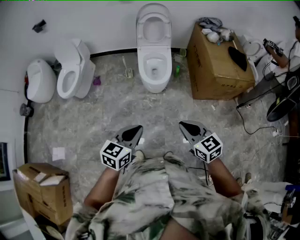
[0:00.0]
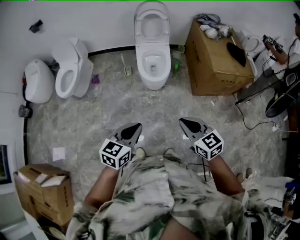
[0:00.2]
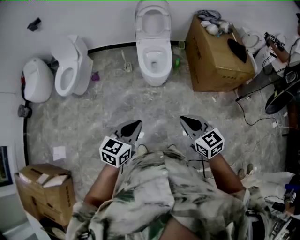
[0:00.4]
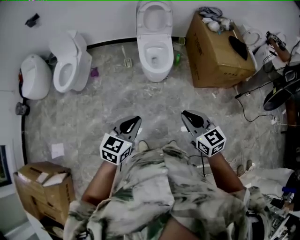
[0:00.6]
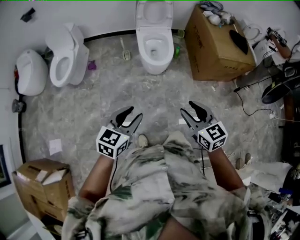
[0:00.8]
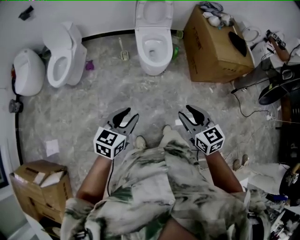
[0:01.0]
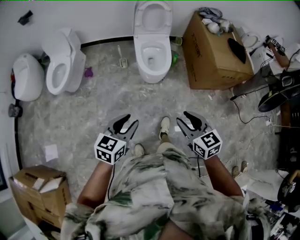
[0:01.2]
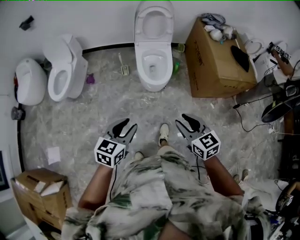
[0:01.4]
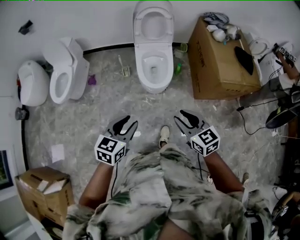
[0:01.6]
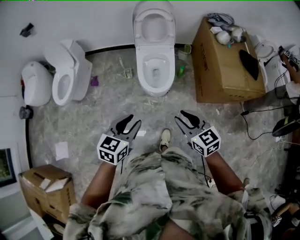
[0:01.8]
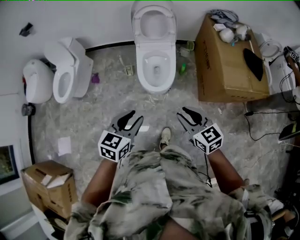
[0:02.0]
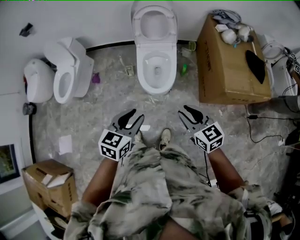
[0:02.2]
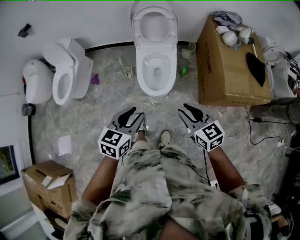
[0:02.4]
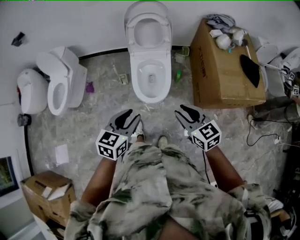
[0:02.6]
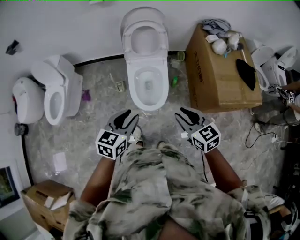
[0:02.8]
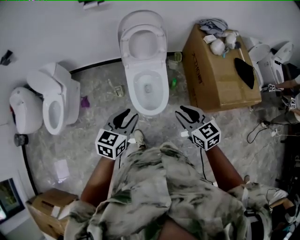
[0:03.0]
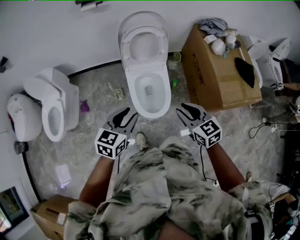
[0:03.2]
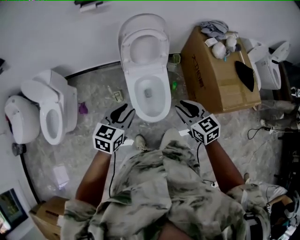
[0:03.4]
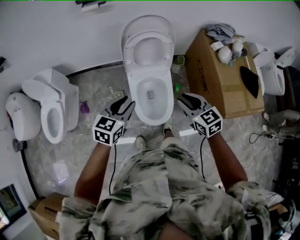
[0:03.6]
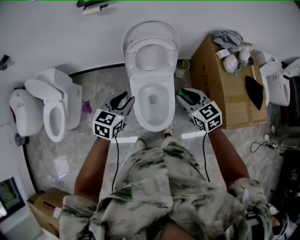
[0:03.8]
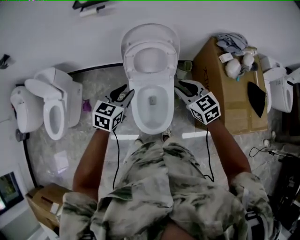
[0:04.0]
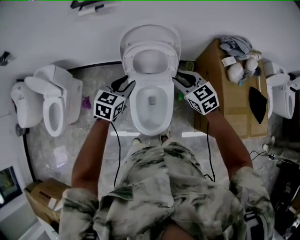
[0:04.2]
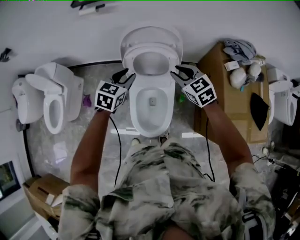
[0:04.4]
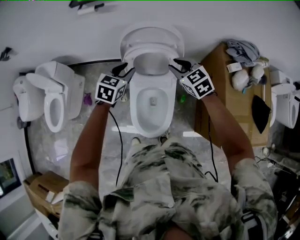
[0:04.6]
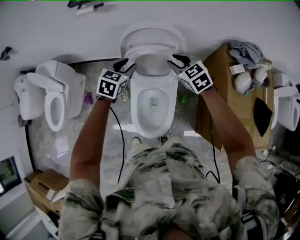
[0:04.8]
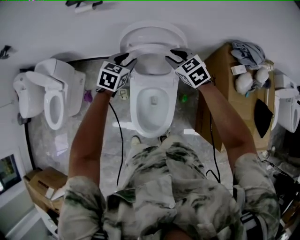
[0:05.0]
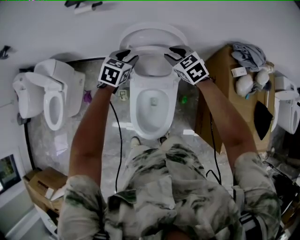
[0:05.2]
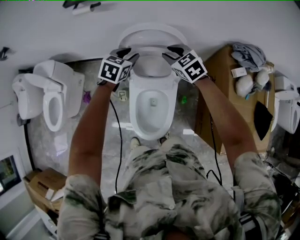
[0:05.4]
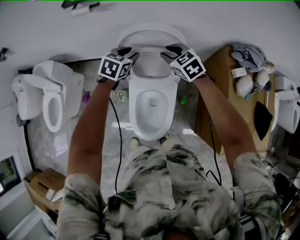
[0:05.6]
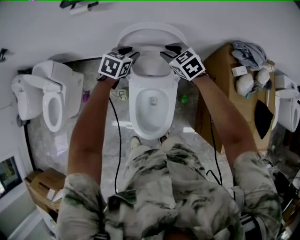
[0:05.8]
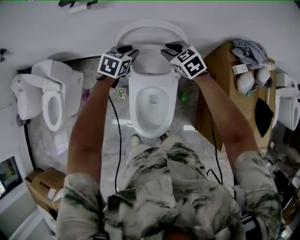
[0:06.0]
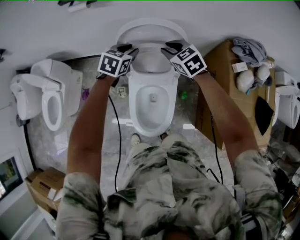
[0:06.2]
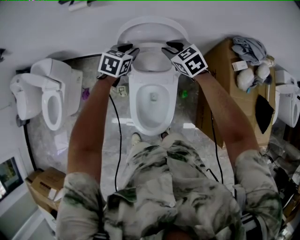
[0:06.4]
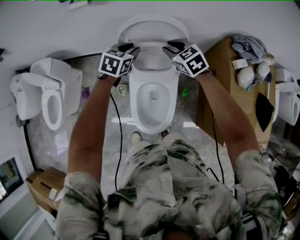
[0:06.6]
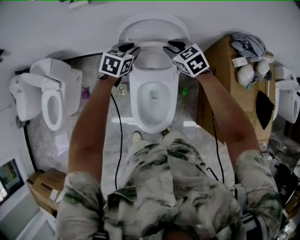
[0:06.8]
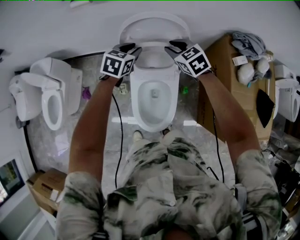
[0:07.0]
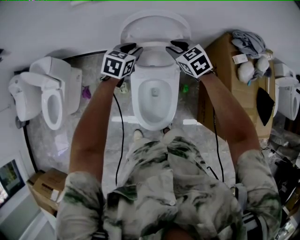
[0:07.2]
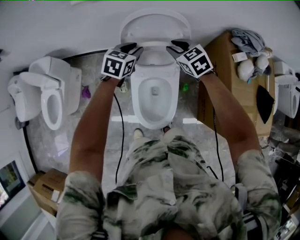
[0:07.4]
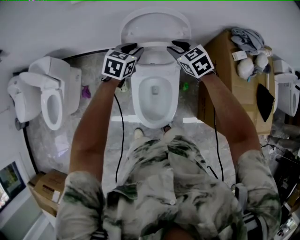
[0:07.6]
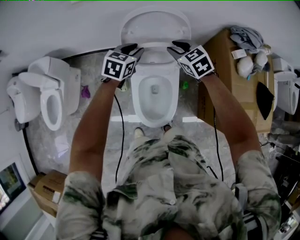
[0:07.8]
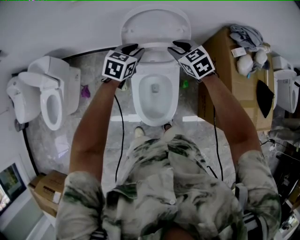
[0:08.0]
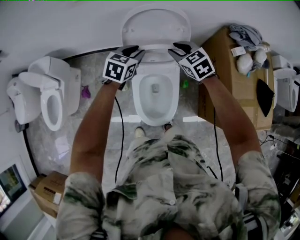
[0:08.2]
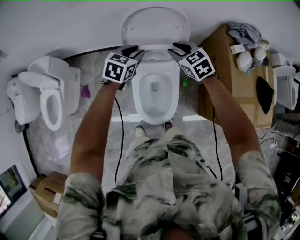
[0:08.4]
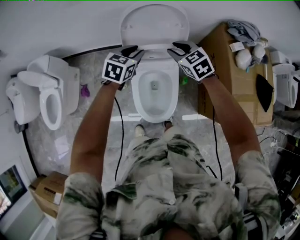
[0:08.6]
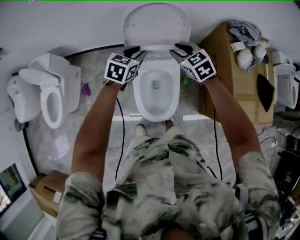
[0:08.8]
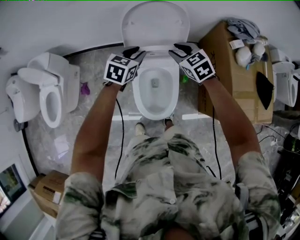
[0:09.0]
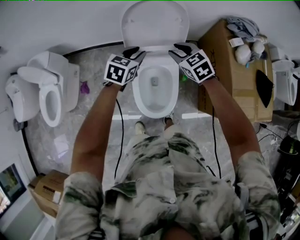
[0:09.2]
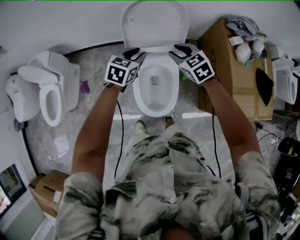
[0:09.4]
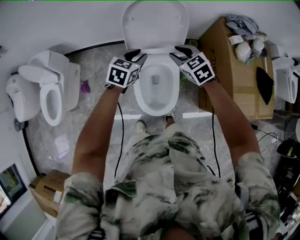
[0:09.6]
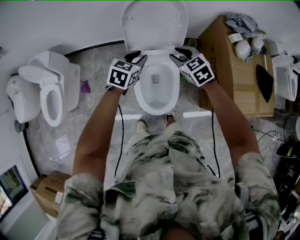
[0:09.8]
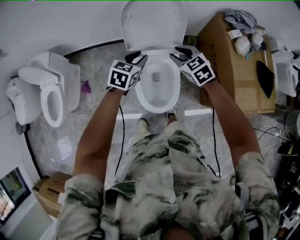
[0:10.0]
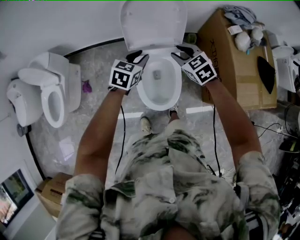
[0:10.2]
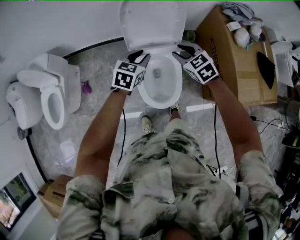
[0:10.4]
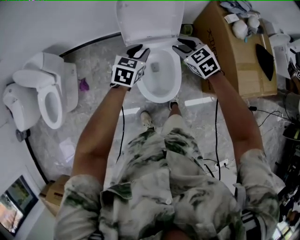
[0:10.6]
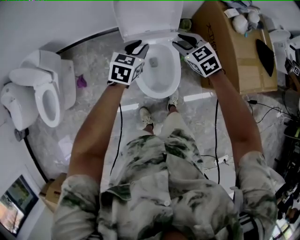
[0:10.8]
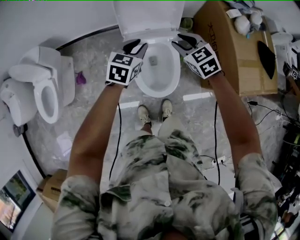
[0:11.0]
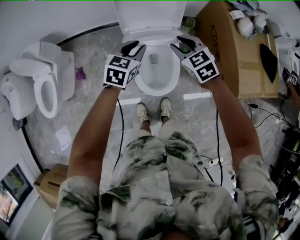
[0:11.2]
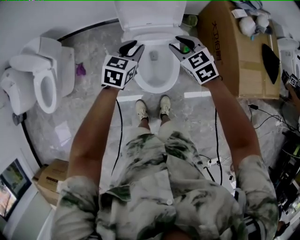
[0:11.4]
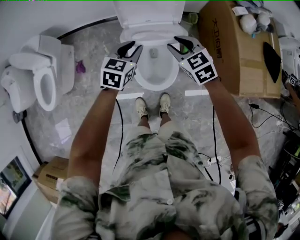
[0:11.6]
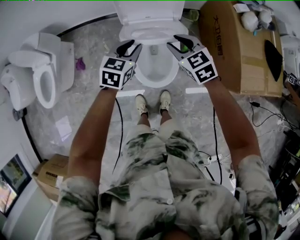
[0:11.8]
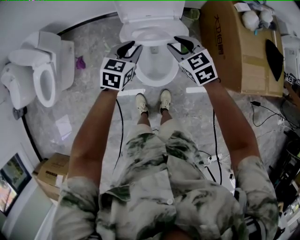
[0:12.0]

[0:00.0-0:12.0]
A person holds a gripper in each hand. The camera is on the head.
0.0 to 1.6 s: Both grippers move forward, approximately 20 cm. The left gripper opens its fingers; the right gripper opens its fingers.
1.6 to 3.0 s: The two grippers go about 30 cm forward.
3.0 to 4.4 s: The pair of grippers is taken forward, approximately 40 cm.
4.4 to 6.0 s: Both grippers move forward, roughly 15 cm.
6.0 to 7.6 s: Both grippers move backward, some 5 cm.
7.6 to 9.0 s: Both grippers travel together backward, about 10 cm.
9.0 to 10.4 s: Both grippers travel together backward, about 10 cm.
10.4 to 12.0 s: Both grippers travel together backward, some 10 cm.

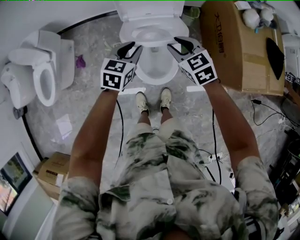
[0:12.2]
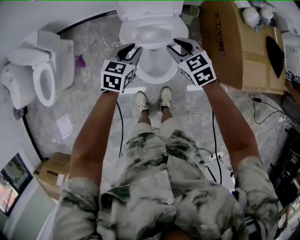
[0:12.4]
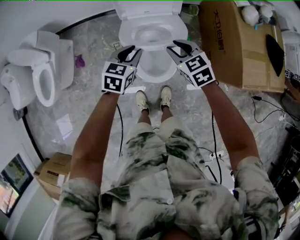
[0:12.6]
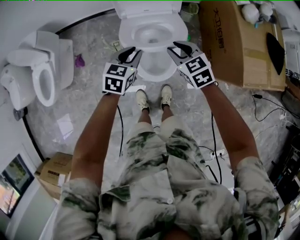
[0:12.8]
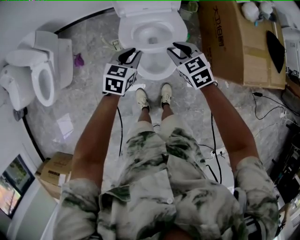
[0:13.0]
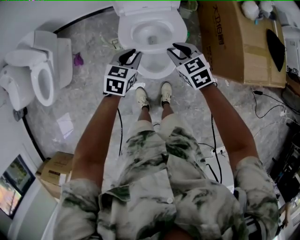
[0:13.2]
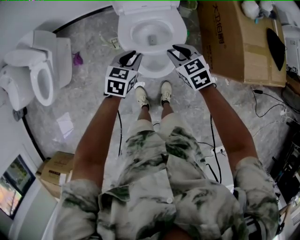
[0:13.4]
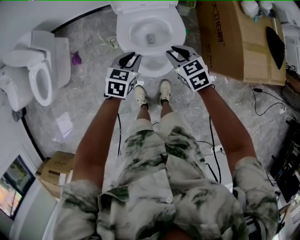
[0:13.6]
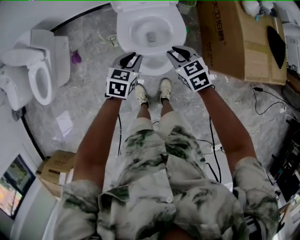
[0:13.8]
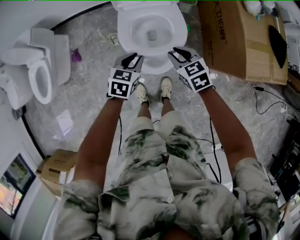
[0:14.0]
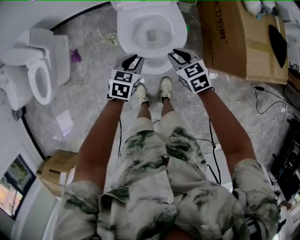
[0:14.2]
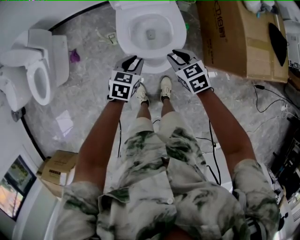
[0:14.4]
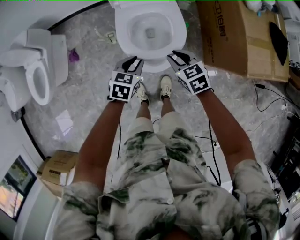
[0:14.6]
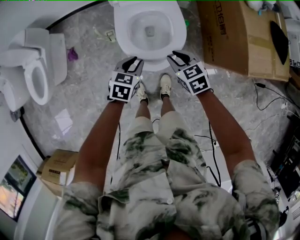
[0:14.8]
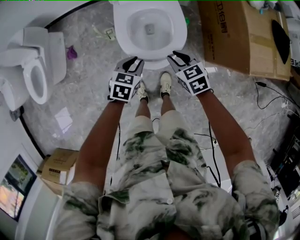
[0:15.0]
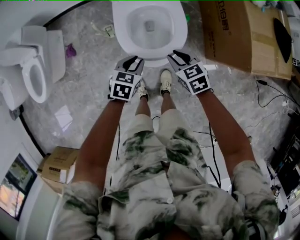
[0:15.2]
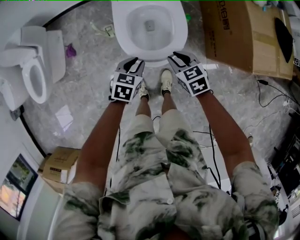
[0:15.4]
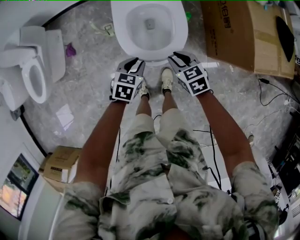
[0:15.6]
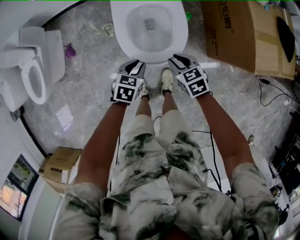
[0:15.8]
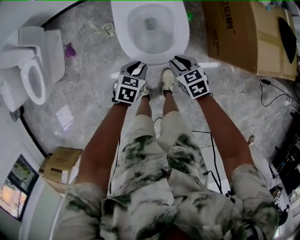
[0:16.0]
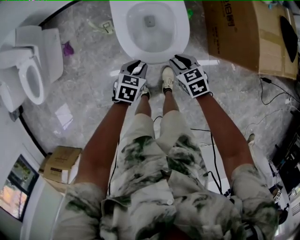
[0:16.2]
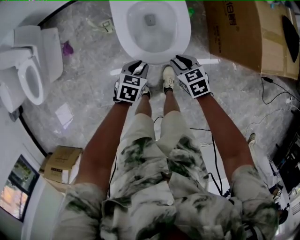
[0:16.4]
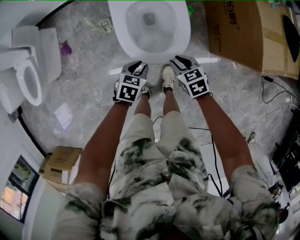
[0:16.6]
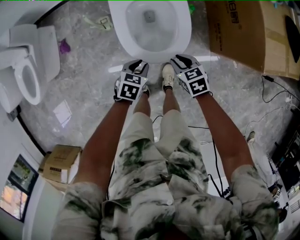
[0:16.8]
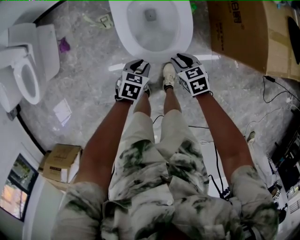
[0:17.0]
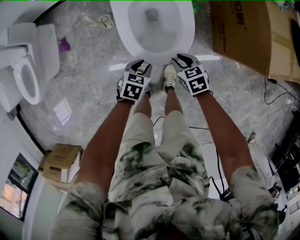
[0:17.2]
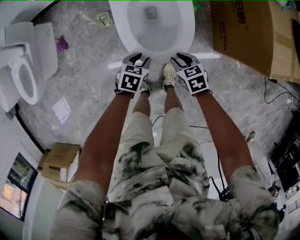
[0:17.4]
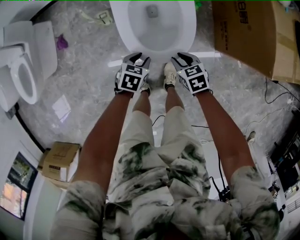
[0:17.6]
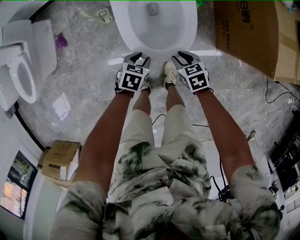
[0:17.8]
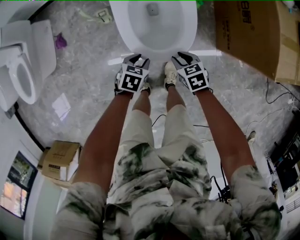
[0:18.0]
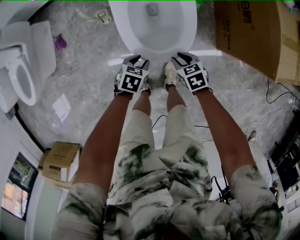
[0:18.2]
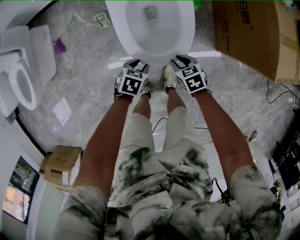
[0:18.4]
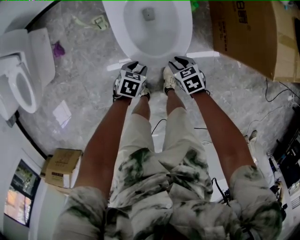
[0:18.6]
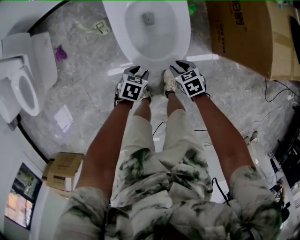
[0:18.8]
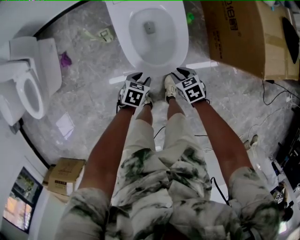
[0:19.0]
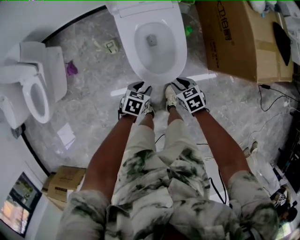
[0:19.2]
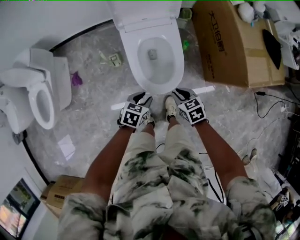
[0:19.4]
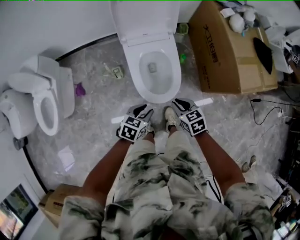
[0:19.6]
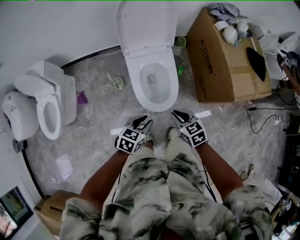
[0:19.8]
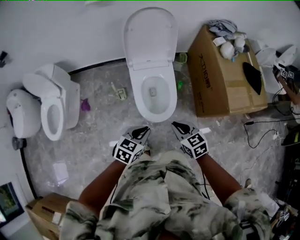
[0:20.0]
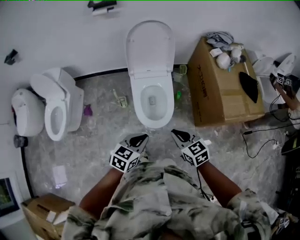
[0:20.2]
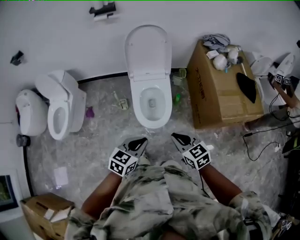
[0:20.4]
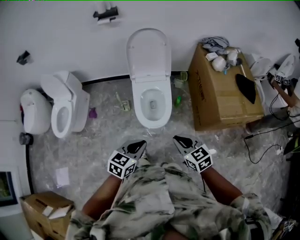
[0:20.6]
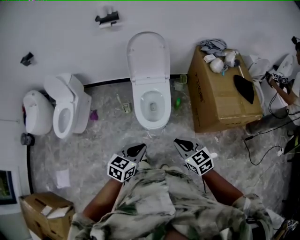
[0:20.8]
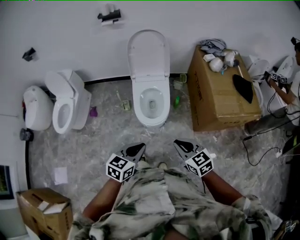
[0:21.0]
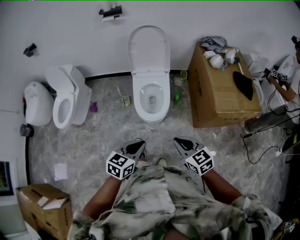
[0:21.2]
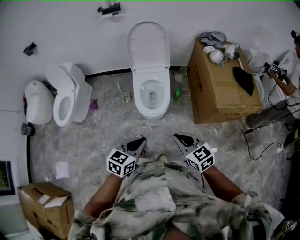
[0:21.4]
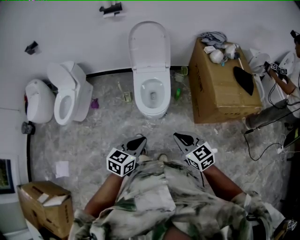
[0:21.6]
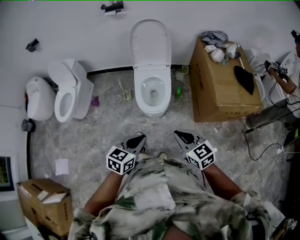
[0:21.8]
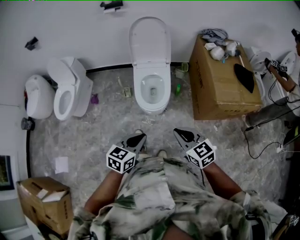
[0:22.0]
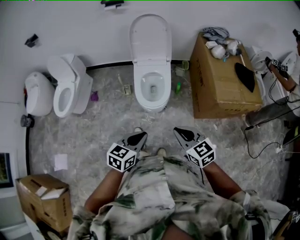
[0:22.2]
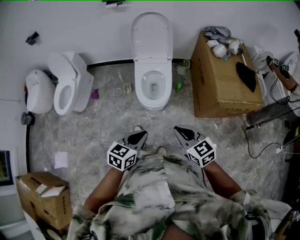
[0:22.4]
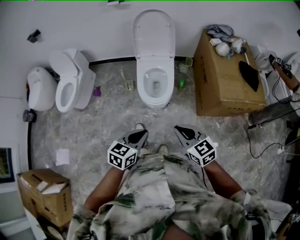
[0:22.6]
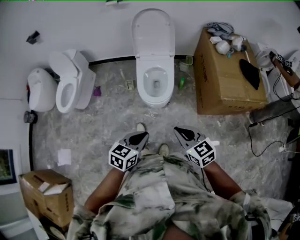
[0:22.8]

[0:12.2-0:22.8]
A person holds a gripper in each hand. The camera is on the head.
12.2 to 13.8 s: The two grippers go some 10 cm backward and downward.
13.8 to 15.2 s: The two grippers go roughly 10 cm downward and backward.
15.2 to 16.8 s: The grippers both shift downward by approximately 10 cm.
16.8 to 18.2 s: The two grippers go approximately 10 cm downward.
18.2 to 19.8 s: Both grippers move upward, about 35 cm. The left gripper turns by some 30 degrees.
19.8 to 21.2 s: The two grippers go roughly 35 cm backward, upward and to the right. The left gripper closes up. The right gripper turns by some 20 degrees.
21.2 to 22.8 s: The left gripper changes place by some 5 cm.

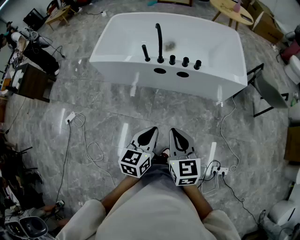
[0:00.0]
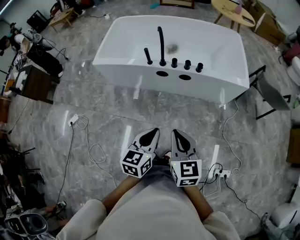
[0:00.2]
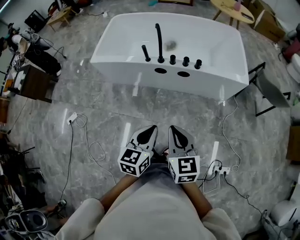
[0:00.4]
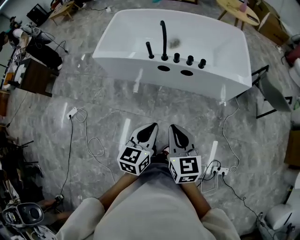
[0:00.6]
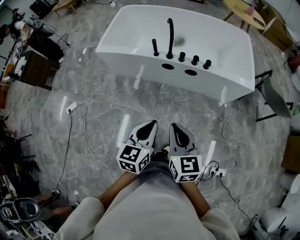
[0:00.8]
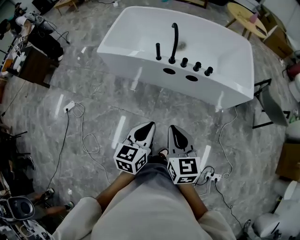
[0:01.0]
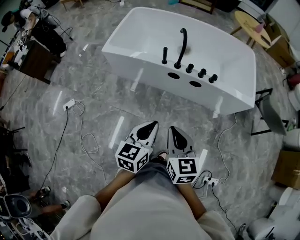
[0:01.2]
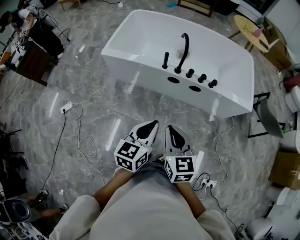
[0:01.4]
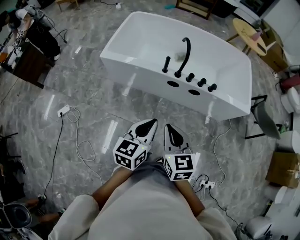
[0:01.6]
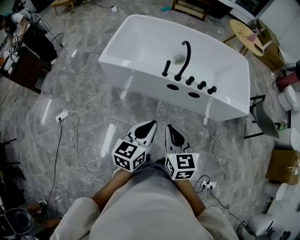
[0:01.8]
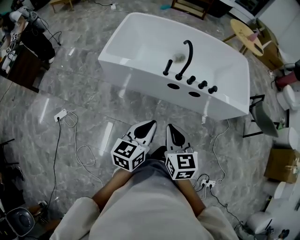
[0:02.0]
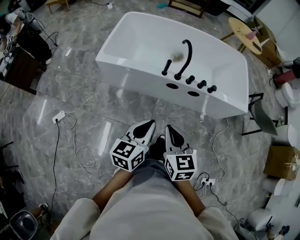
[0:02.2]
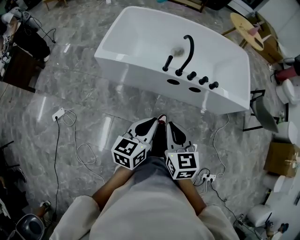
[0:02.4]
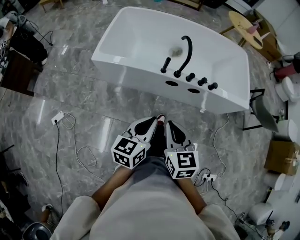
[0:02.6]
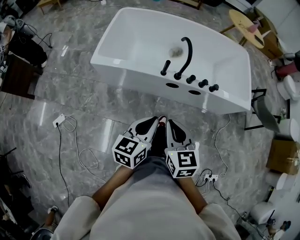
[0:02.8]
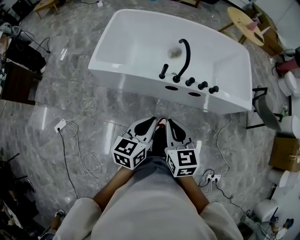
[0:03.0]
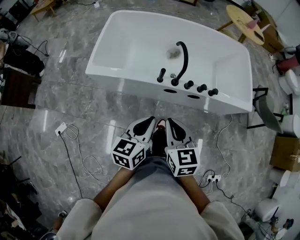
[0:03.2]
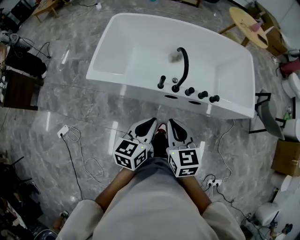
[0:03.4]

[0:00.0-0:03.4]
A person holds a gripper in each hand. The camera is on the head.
0.0 to 1.6 s: The grippers both shift to the left and forward by roughly 20 cm.
1.6 to 3.4 s: Both grippers move forward, approximately 20 cm.
